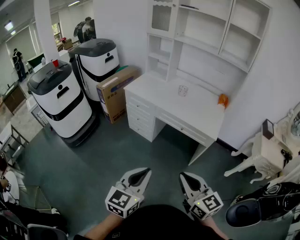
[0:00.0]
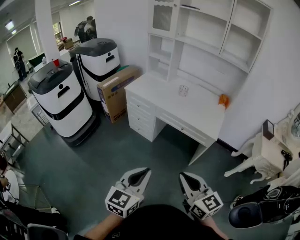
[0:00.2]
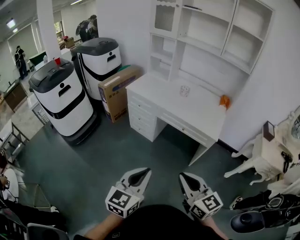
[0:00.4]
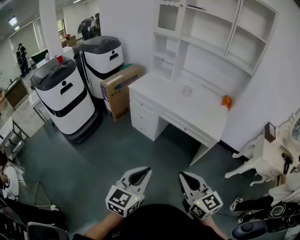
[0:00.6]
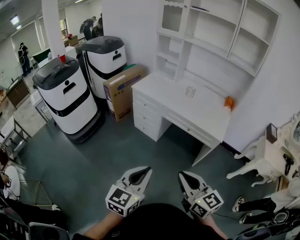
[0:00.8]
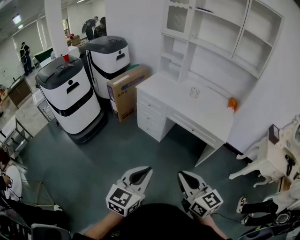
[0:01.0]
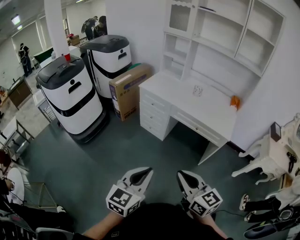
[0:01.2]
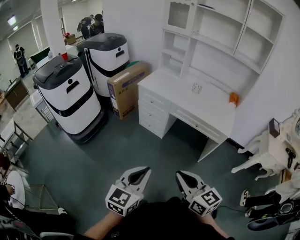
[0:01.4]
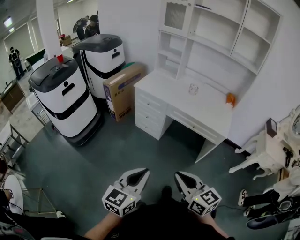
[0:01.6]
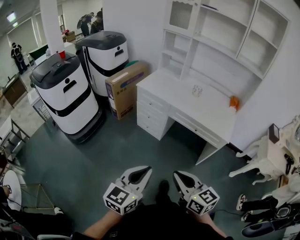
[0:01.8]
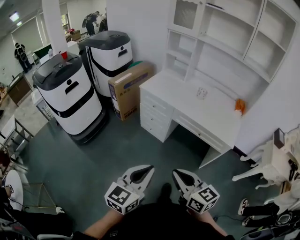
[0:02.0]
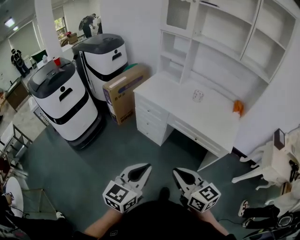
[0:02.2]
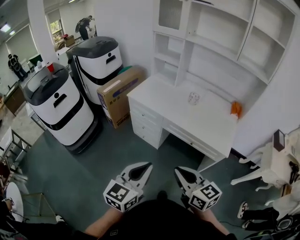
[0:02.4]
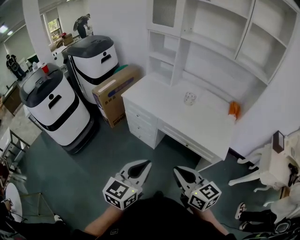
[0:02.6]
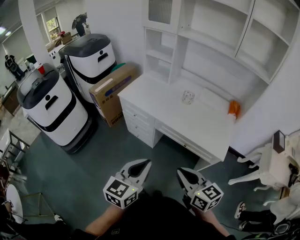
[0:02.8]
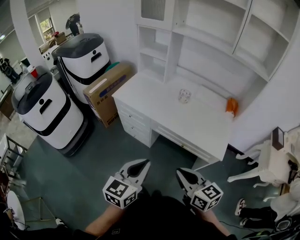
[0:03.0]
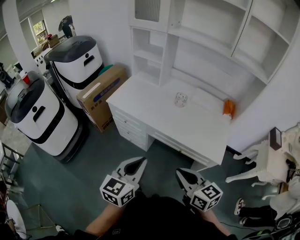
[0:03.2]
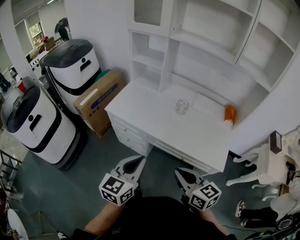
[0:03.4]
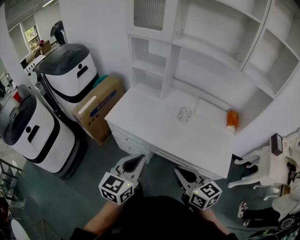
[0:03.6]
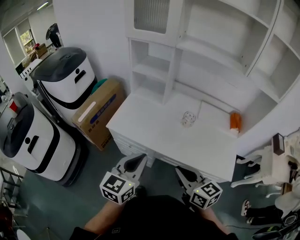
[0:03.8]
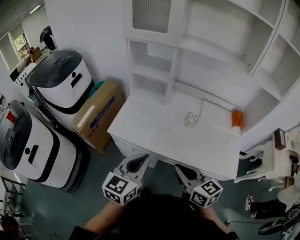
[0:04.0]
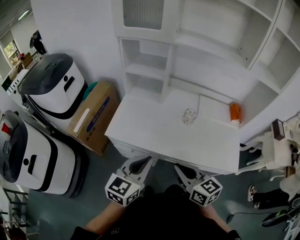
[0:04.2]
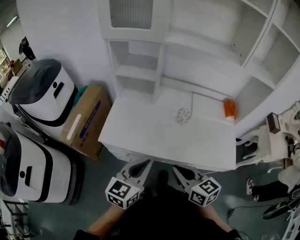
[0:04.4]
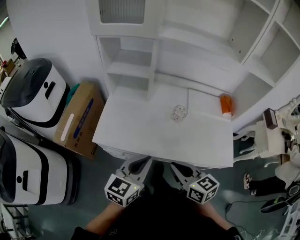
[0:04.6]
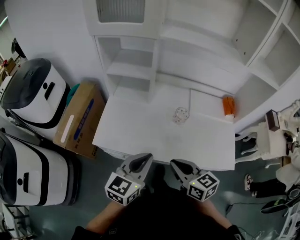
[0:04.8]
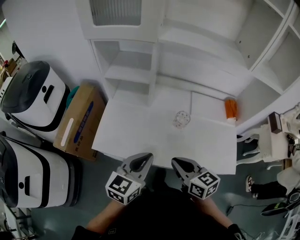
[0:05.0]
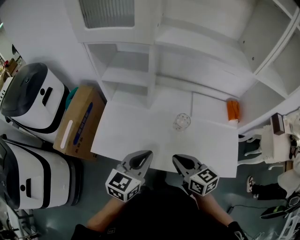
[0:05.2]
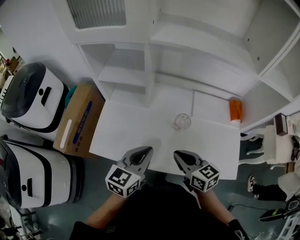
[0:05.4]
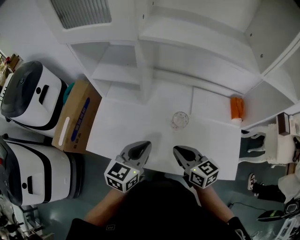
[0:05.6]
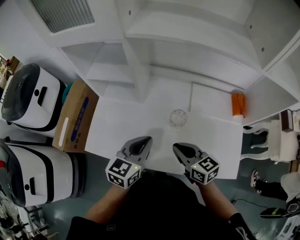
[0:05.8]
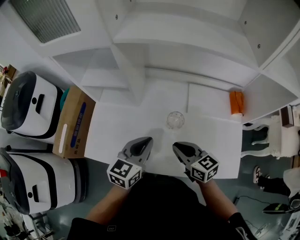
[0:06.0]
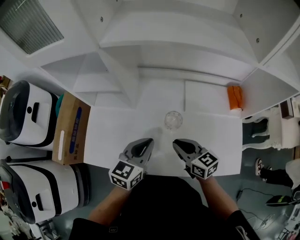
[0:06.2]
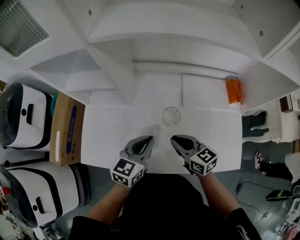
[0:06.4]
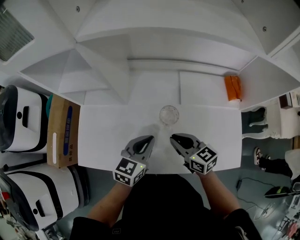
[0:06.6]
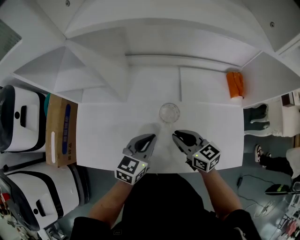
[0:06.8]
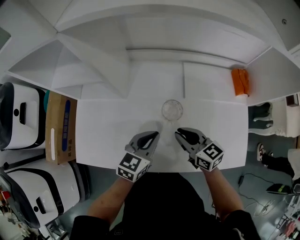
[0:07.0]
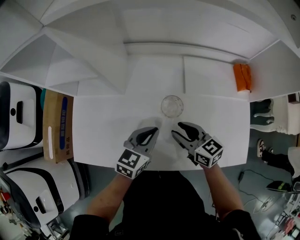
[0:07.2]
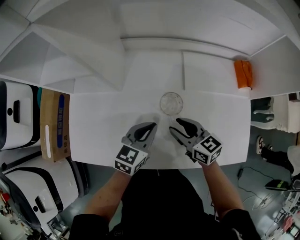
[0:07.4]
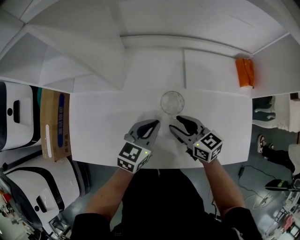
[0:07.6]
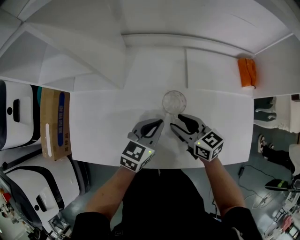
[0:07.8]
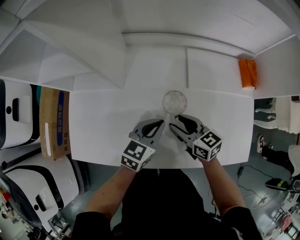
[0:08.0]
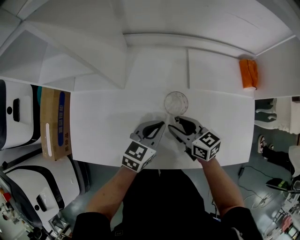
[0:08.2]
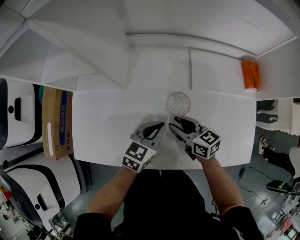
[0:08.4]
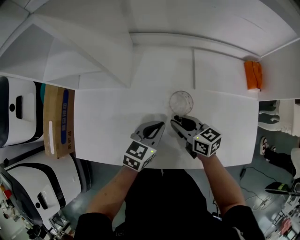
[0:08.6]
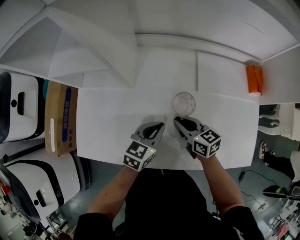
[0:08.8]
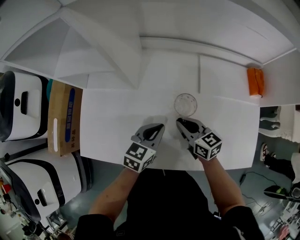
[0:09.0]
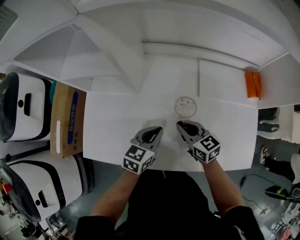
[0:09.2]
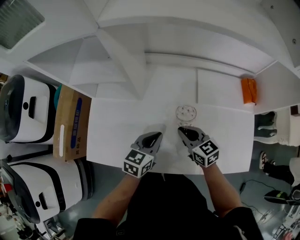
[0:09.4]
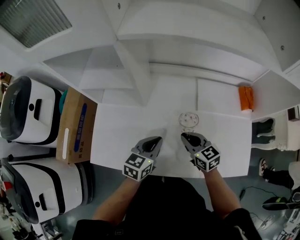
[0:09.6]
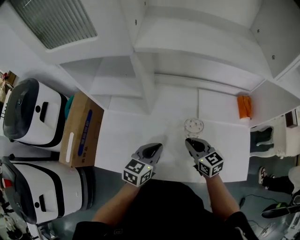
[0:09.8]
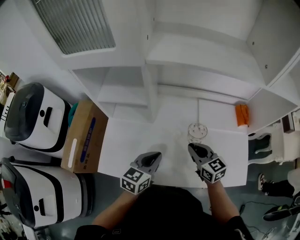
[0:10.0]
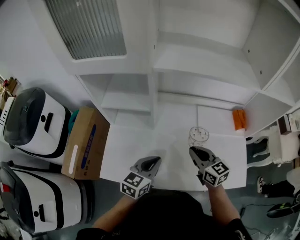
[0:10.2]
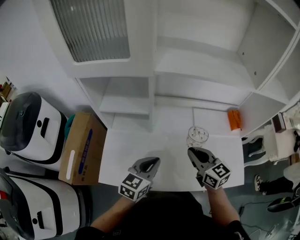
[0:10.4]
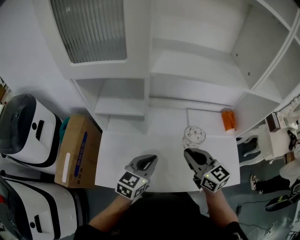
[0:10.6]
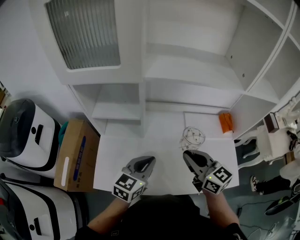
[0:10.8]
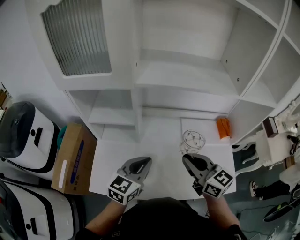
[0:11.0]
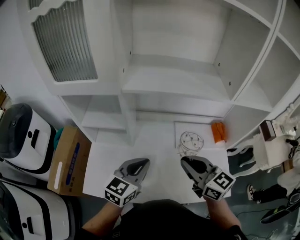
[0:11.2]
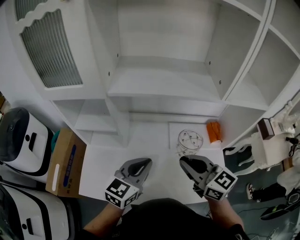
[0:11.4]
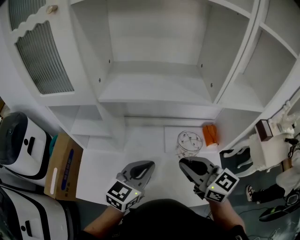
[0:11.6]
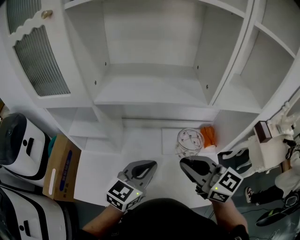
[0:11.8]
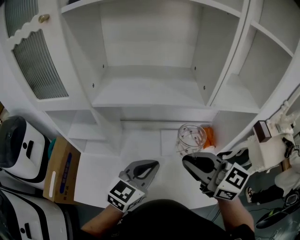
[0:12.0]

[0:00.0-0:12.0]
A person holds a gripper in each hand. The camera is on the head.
0:00.0 to 0:01.6: The grippers both shift to the left by about 15 cm.
0:01.6 to 0:03.0: Both grippers move forward and to the right, approximately 30 cm.
0:03.0 to 0:04.4: The left gripper travels forward by some 30 cm. The right gripper heads forward and to the left, covering about 30 cm.
0:04.4 to 0:06.0: The grippers both shift forward and to the right by about 25 cm.
0:06.0 to 0:07.6: The left gripper heads downward, covering roughly 15 cm. Meanwhile the right gripper shifts some 15 cm downward and forward, and opens.
0:07.6 to 0:09.0: The right gripper closes up.
0:09.0 to 0:10.4: The left gripper goes roughly 20 cm upward and to the left; the right gripper moves upward, roughly 20 cm, and turns by some 20 degrees.
0:10.4 to 0:12.0: The right gripper shifts some 25 cm upward and to the right, while the left gripper travels to the right and upward by approximately 25 cm.

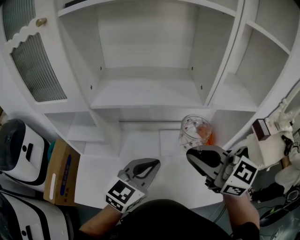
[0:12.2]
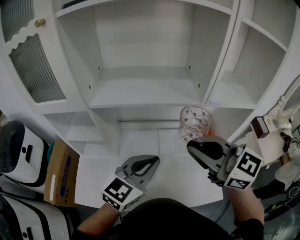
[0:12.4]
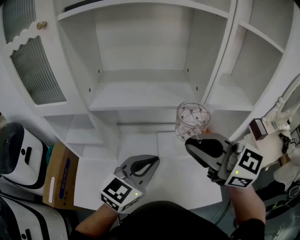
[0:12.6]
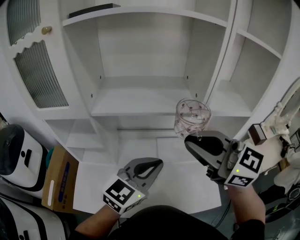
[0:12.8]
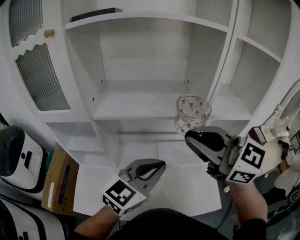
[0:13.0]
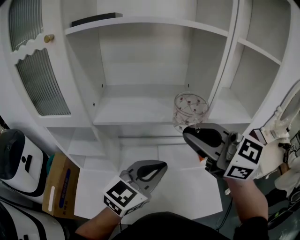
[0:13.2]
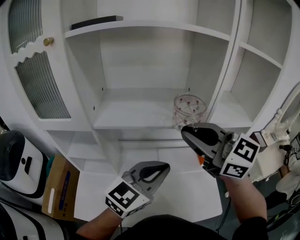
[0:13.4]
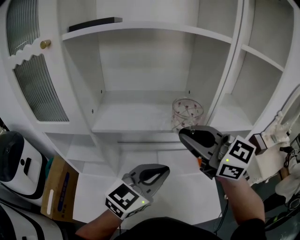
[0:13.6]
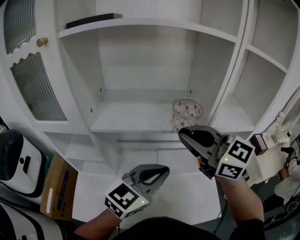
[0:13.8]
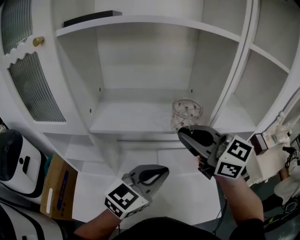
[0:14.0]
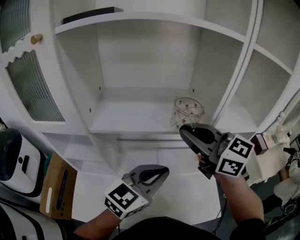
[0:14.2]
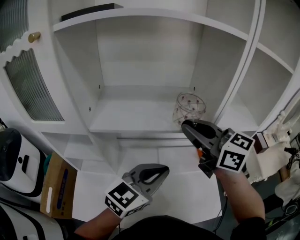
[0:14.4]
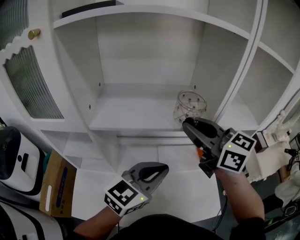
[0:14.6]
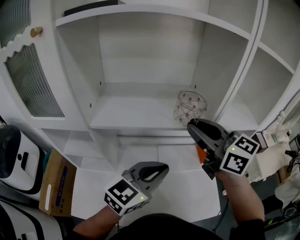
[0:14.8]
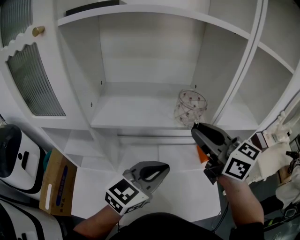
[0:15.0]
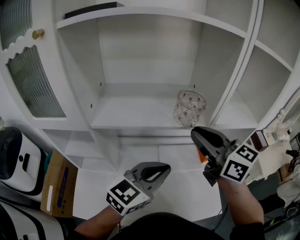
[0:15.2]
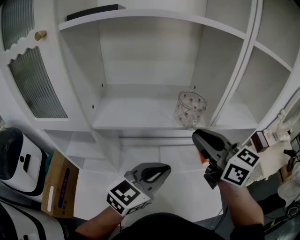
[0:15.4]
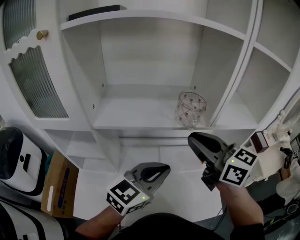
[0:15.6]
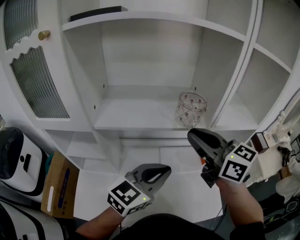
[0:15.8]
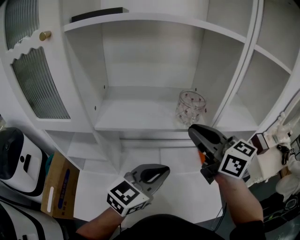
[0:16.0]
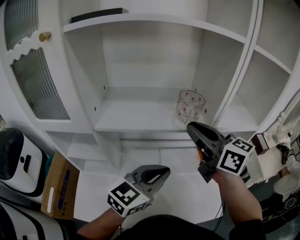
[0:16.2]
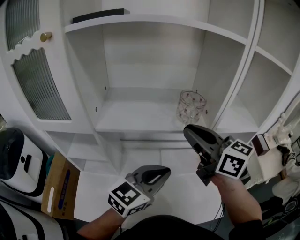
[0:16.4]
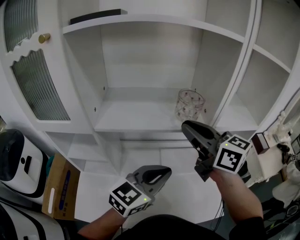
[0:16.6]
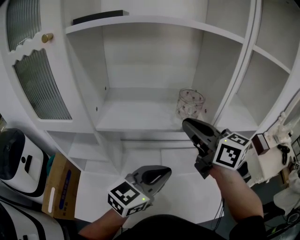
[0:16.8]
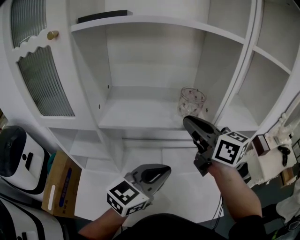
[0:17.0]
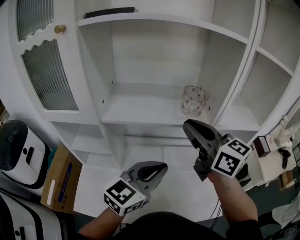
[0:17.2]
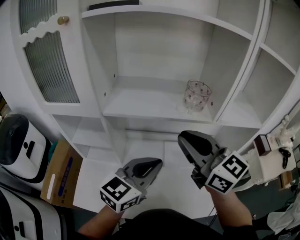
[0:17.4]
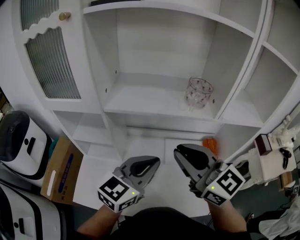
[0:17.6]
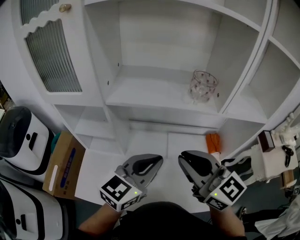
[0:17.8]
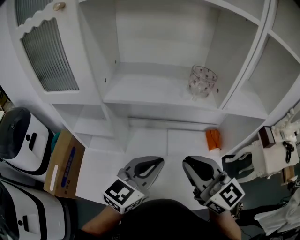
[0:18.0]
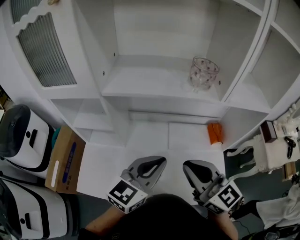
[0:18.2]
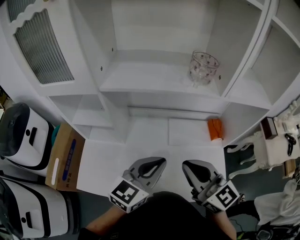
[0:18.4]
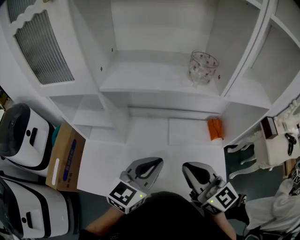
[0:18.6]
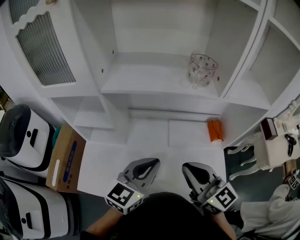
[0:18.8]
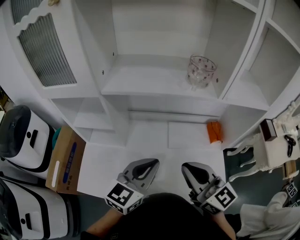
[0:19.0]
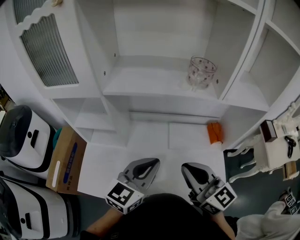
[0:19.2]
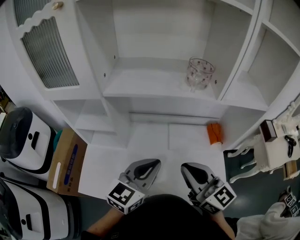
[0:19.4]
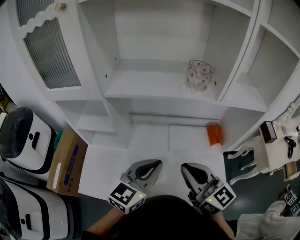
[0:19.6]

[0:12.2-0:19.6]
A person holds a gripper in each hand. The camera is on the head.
0:12.2 to 0:13.6: The right gripper goes approximately 10 cm upward and forward, while the left gripper travels upward by about 5 cm.
0:13.6 to 0:15.2: The right gripper changes place by approximately 5 cm, and turns by roughly 20 degrees.
0:15.2 to 0:16.6: The grippers move only a little.
0:16.6 to 0:18.2: The right gripper travels backward and downward by about 20 cm; the left gripper changes place by approximately 10 cm.
0:18.2 to 0:19.6: The grippers make only small movements.

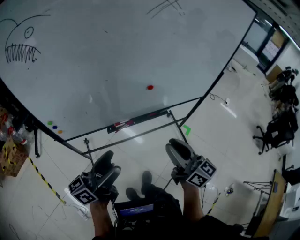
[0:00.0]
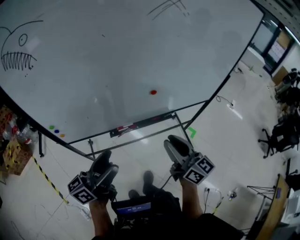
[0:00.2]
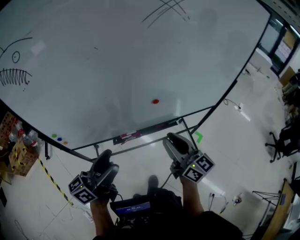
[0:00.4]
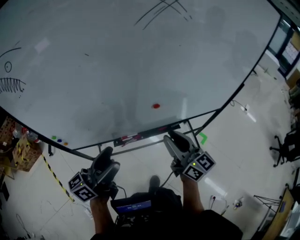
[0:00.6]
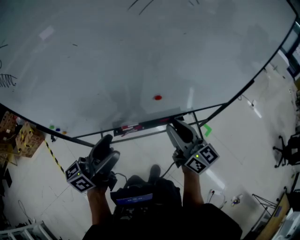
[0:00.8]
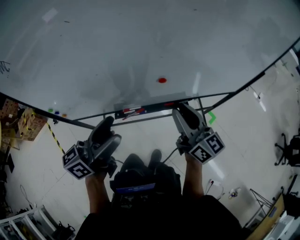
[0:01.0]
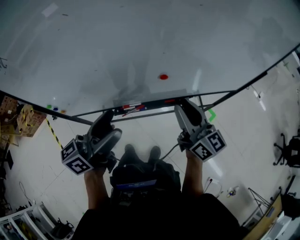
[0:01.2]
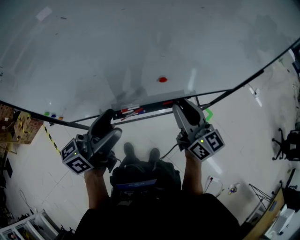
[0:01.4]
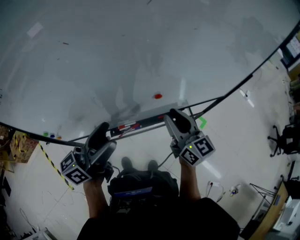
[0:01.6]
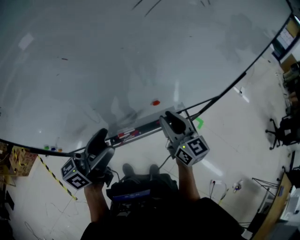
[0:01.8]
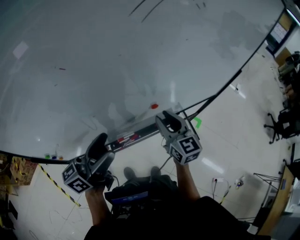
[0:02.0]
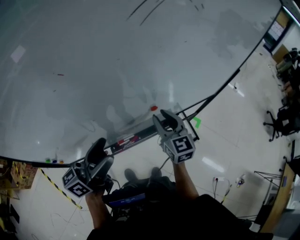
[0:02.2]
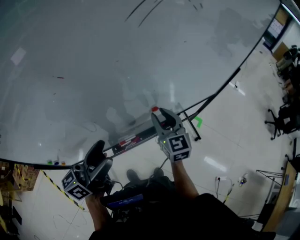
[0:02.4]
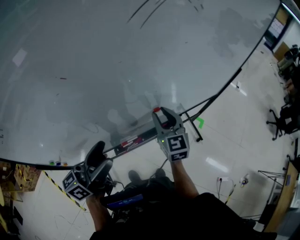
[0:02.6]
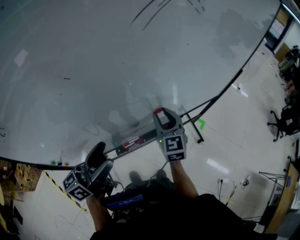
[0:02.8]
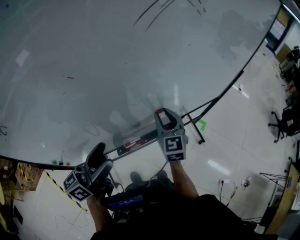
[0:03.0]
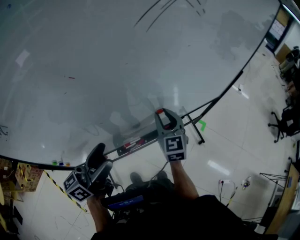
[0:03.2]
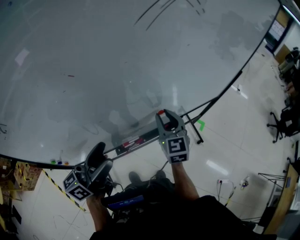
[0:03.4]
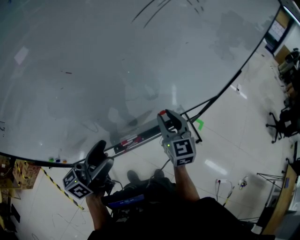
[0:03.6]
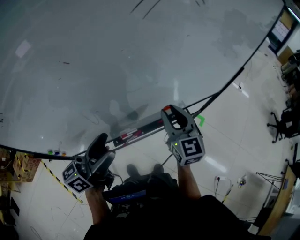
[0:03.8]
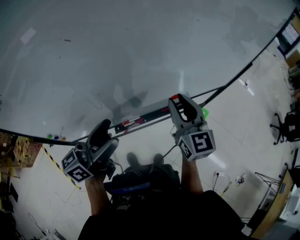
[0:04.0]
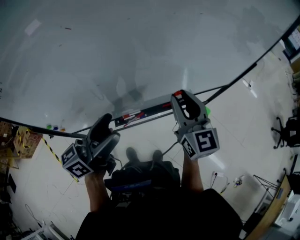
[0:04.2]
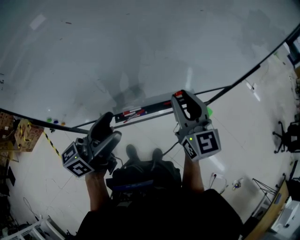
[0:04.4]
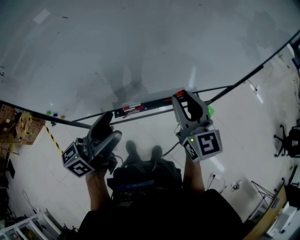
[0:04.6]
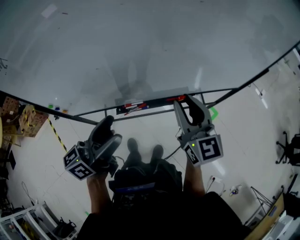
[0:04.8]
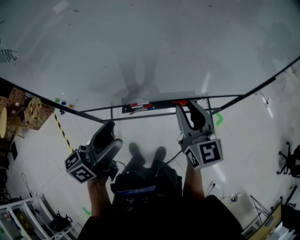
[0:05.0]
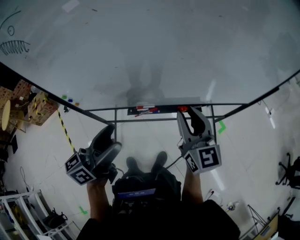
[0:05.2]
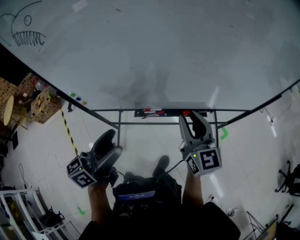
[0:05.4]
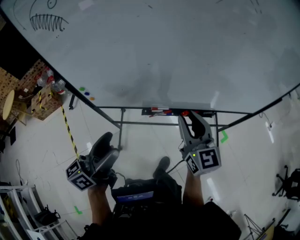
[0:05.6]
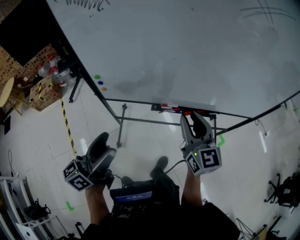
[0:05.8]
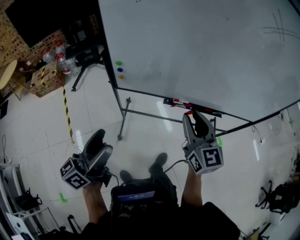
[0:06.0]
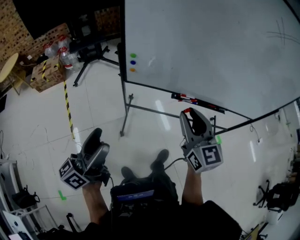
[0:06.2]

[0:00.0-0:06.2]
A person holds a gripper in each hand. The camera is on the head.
0:00.0 to 0:01.6: The grippers both shift forward by approximately 20 cm.
0:01.6 to 0:03.2: The right gripper moves forward, about 5 cm, and rotates roughly 40 degrees.
0:03.2 to 0:04.6: The right gripper travels backward, upward and to the right by roughly 10 cm, and rotates some 20 degrees; the left gripper heads to the right, covering some 5 cm.
0:04.6 to 0:06.2: The left gripper moves roughly 50 cm, and turns by about 30 degrees, while the right gripper ends up about 35 cm from where it was, and changes its angle by about 20 degrees.
